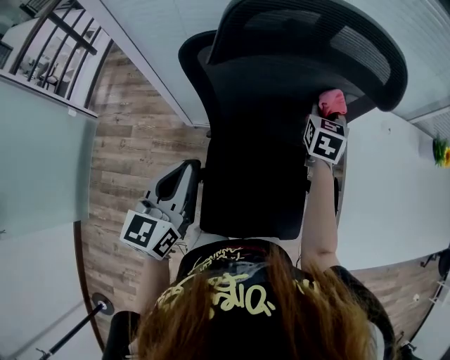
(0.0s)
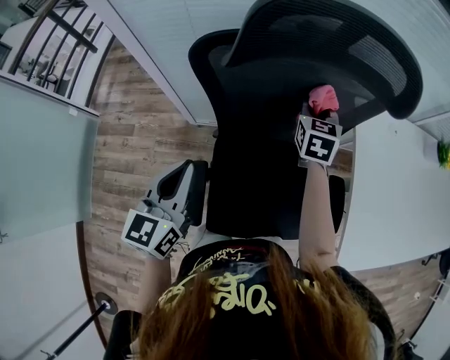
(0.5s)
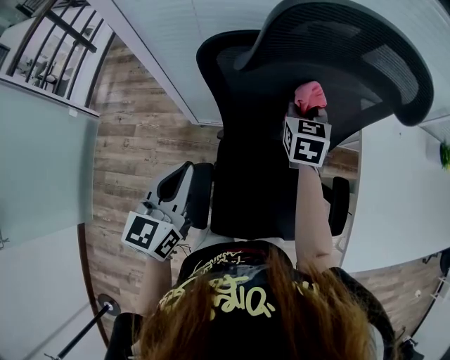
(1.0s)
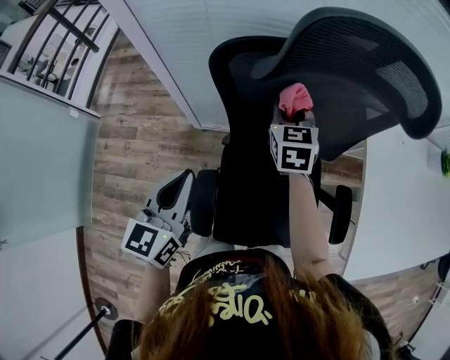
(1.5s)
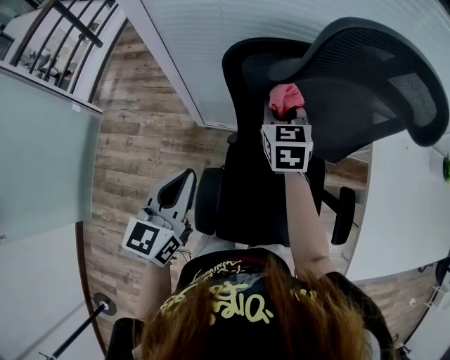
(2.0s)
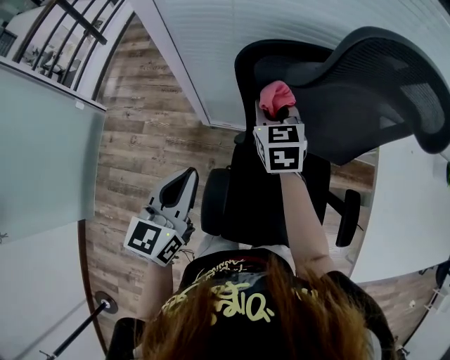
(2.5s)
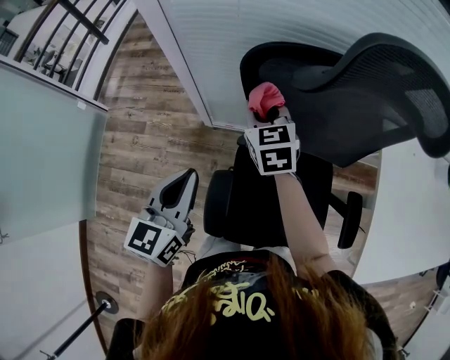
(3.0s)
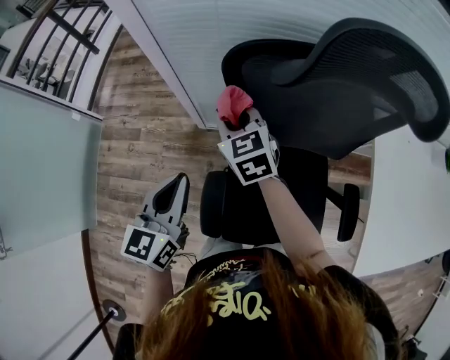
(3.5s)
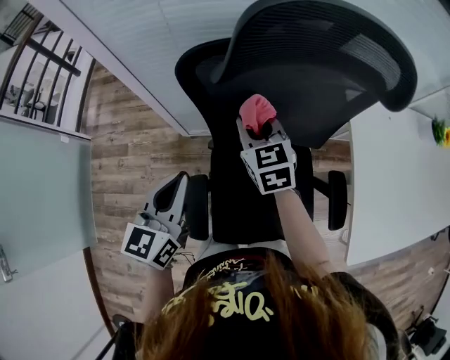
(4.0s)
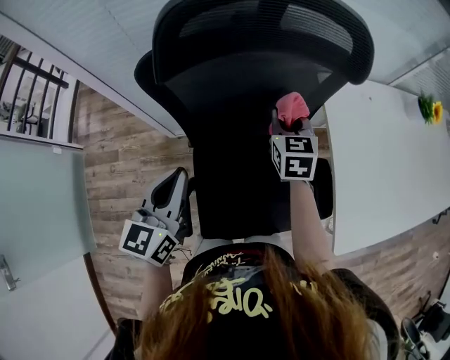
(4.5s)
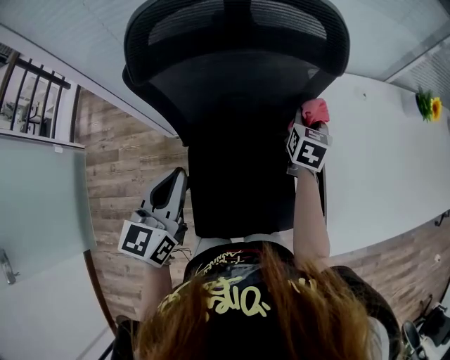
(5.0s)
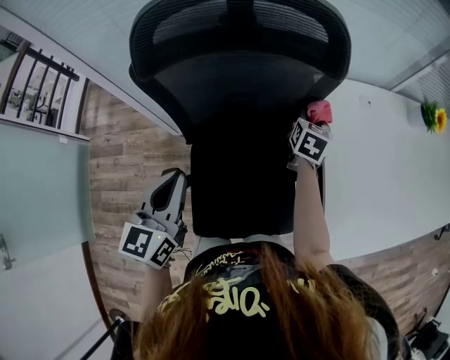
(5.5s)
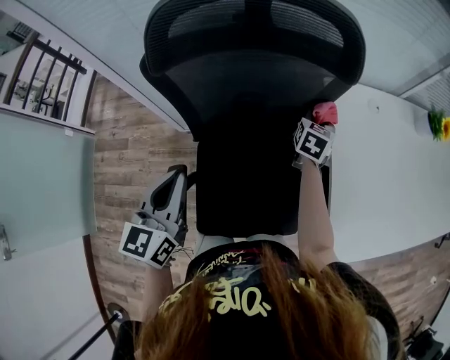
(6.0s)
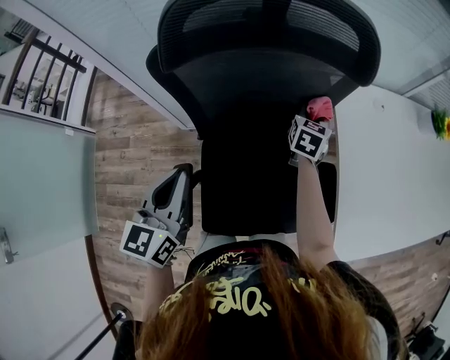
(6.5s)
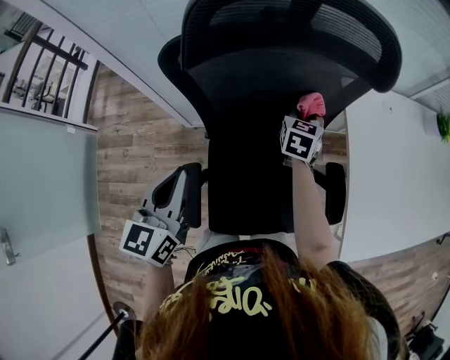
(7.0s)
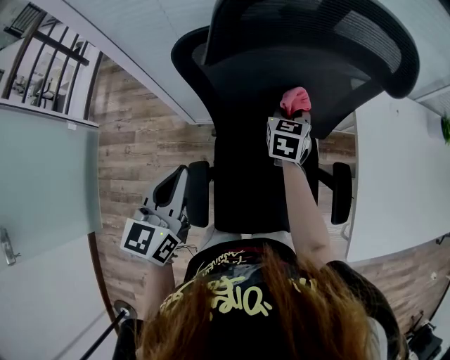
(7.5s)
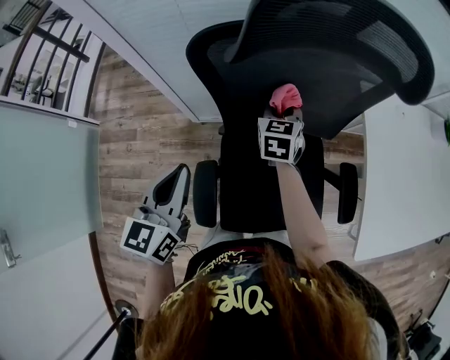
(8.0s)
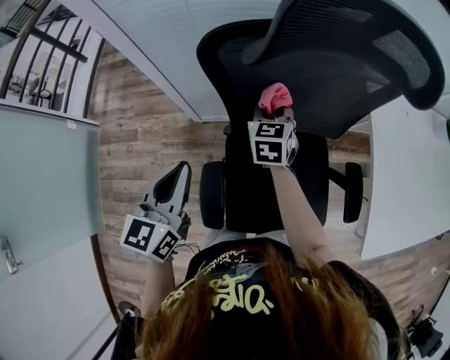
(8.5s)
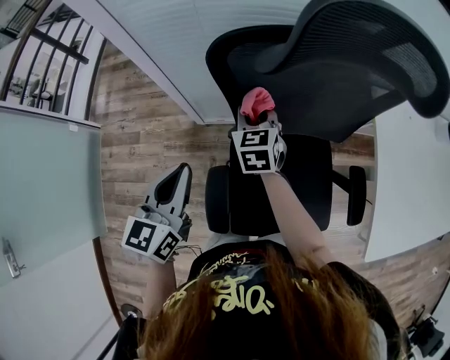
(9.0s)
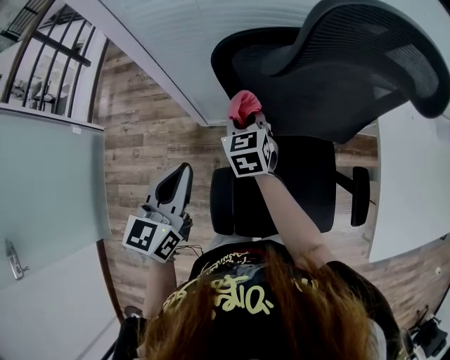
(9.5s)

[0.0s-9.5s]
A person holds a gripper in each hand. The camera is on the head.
0.0s to 2.0s: The right gripper is displaced to the left by roughly 25 cm, and turns by approximately 20 degrees; the left gripper heads to the left, covering some 10 cm.
2.0s to 4.0s: The left gripper changes place by some 5 cm. Meanwhile the right gripper is displaced backward by about 5 cm, and goes to the left and returns, approximately 15 cm each way.
4.0s to 5.5s: The left gripper heads to the right, covering approximately 10 cm, while the right gripper is displaced to the right by about 30 cm, and swivels approximately 40 degrees.
5.5s to 7.5s: The left gripper shifts about 10 cm to the left. Meanwhile the right gripper is displaced to the left by some 20 cm.
7.5s to 9.5s: The left gripper goes some 10 cm to the left, while the right gripper goes about 25 cm to the left, and turns by some 20 degrees.

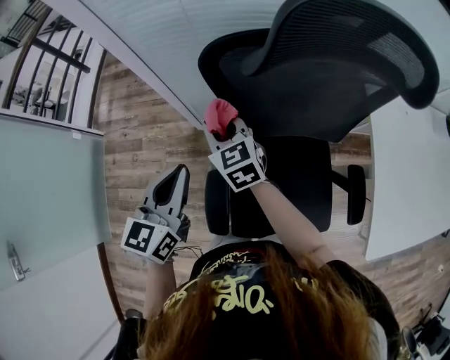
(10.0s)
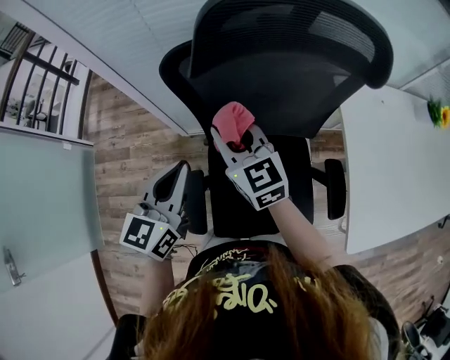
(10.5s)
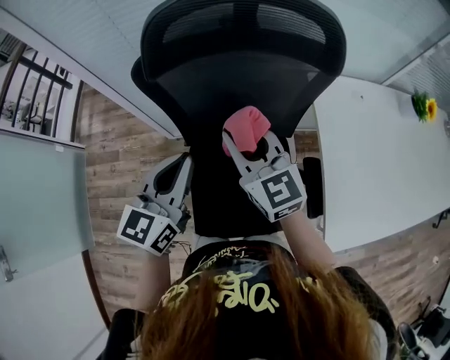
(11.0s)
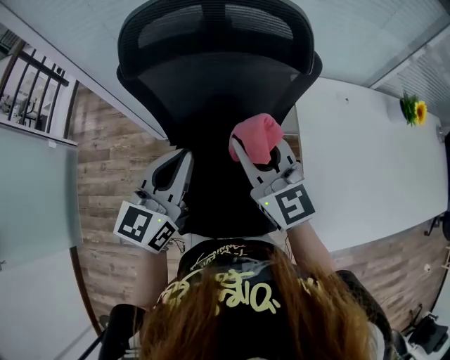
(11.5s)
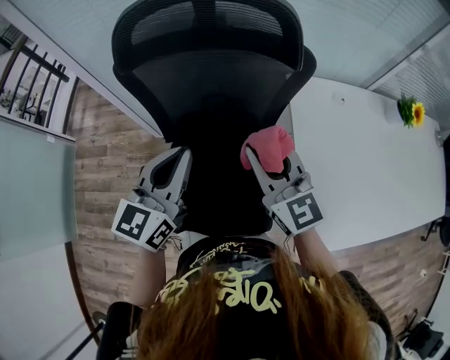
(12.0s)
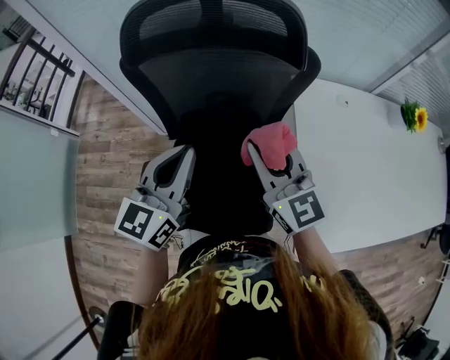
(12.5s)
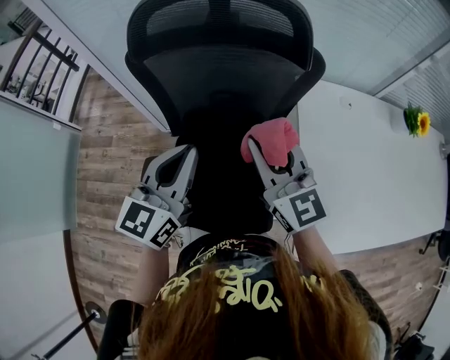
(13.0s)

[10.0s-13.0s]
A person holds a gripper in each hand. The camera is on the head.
10.0s to 11.5s: The right gripper travels to the right, upward and backward by some 35 cm, and rotates approximately 20 degrees. The left gripper moves to the right, approximately 25 cm.
11.5s to 13.0s: There are only small adjustments of the grippers.

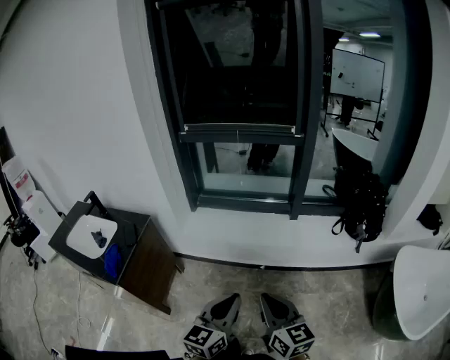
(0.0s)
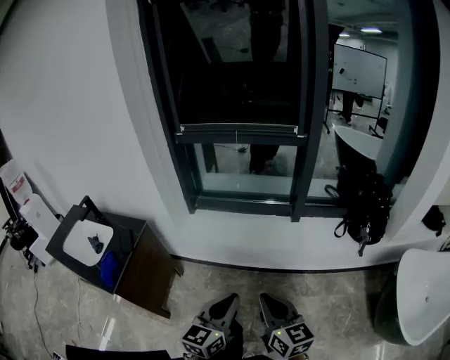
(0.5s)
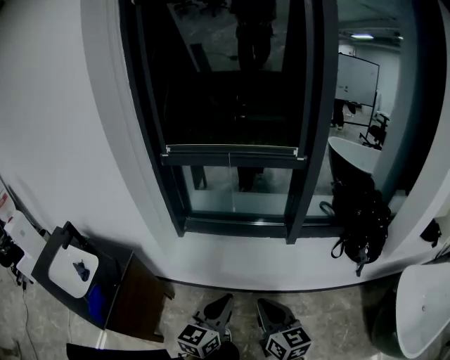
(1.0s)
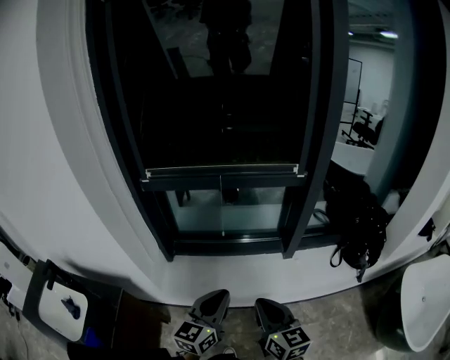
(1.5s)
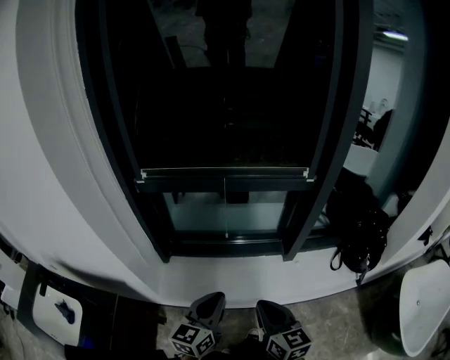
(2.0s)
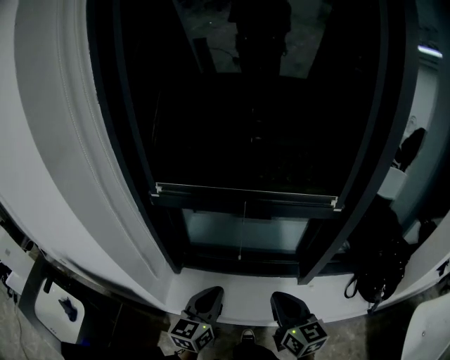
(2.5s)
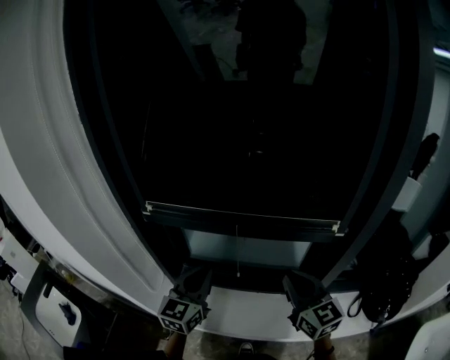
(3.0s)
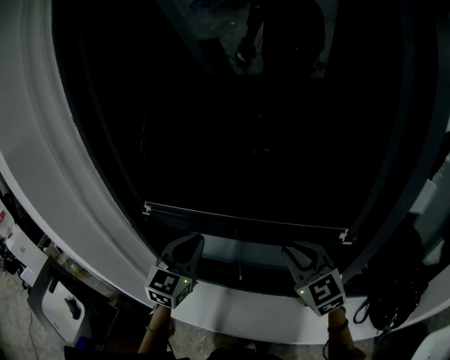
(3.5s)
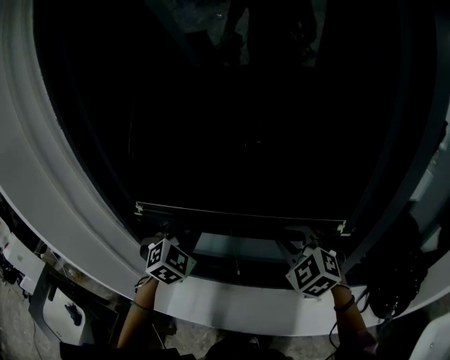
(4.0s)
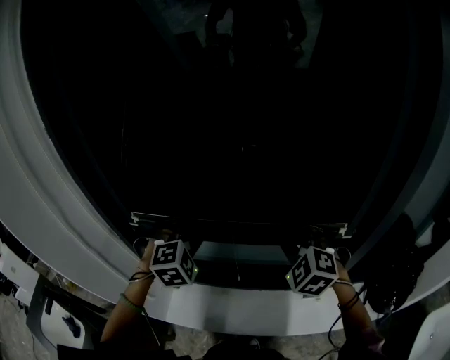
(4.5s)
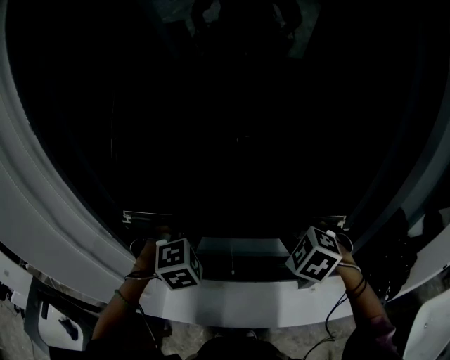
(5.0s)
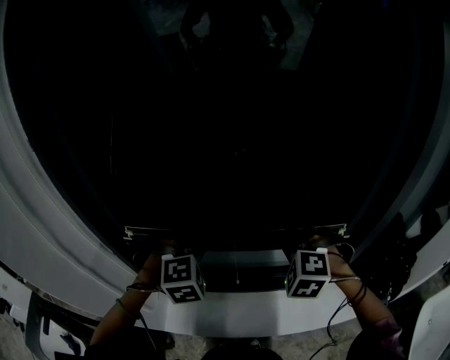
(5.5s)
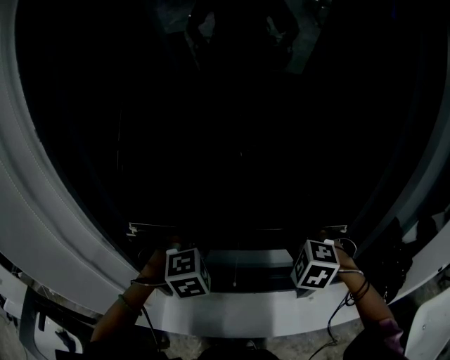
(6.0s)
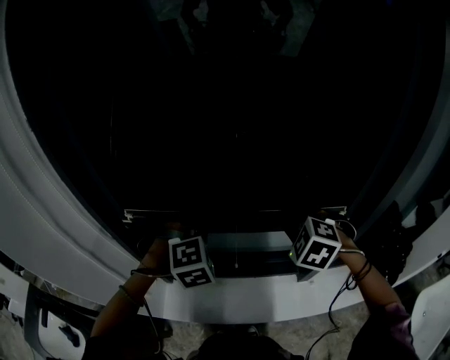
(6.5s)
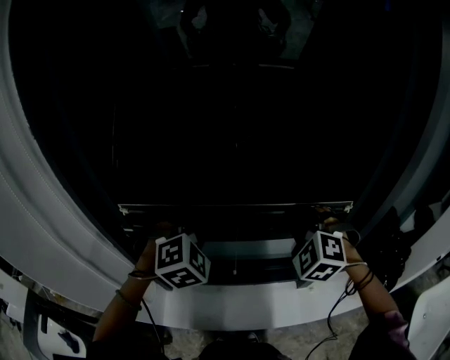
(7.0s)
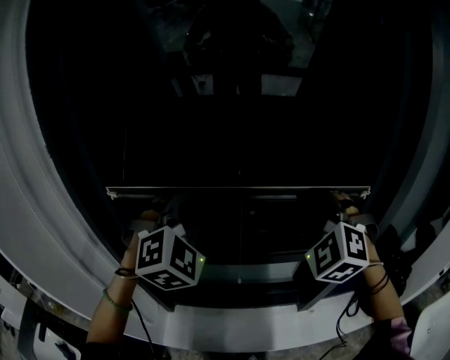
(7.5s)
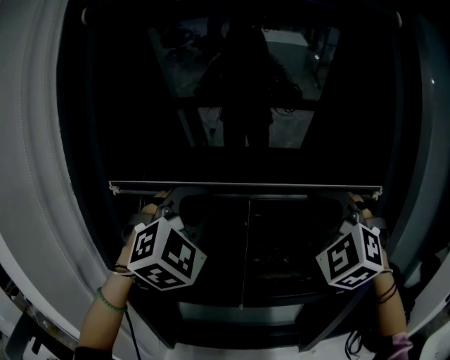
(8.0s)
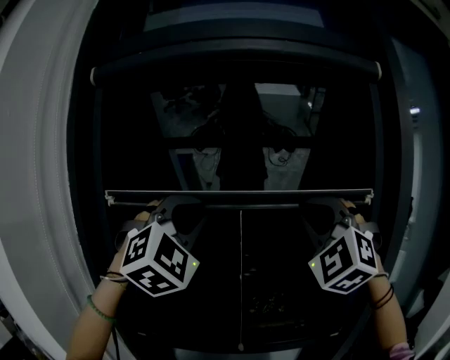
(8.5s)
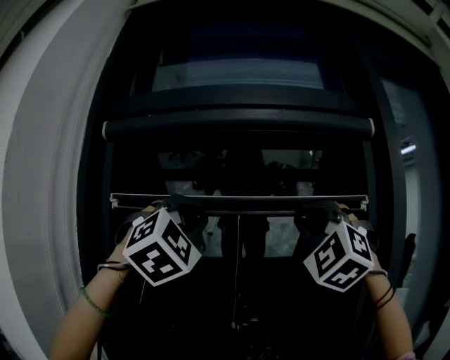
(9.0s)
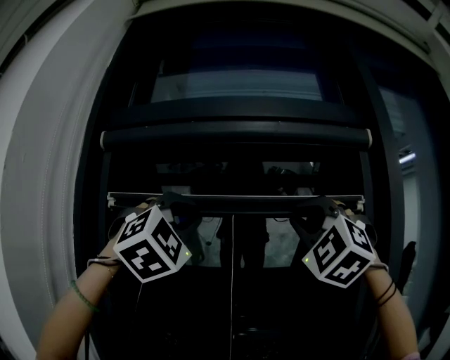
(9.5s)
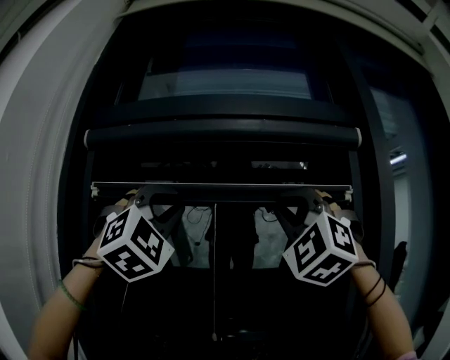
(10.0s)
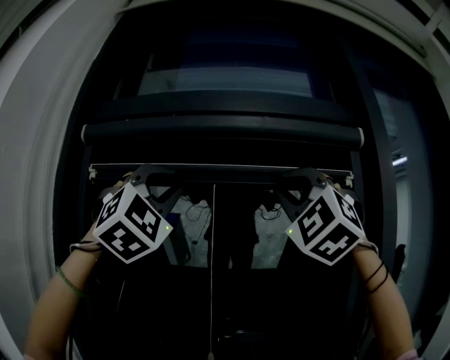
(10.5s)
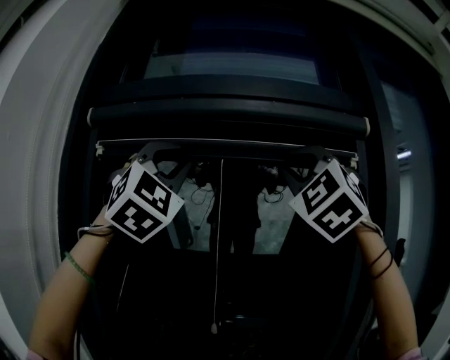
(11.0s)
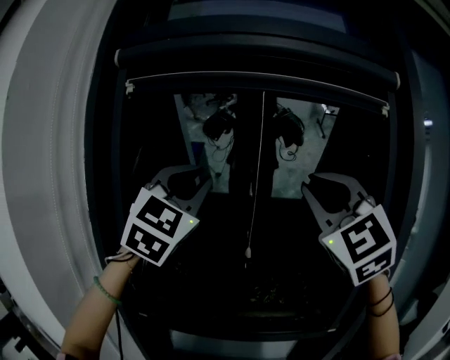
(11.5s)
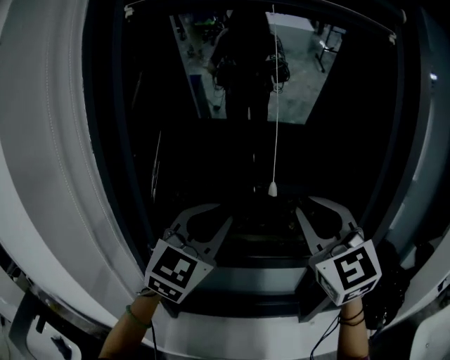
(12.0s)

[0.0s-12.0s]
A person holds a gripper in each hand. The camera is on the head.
0.0s to 2.0s: Both grippers are carried forward, approximately 50 cm.
2.0s to 4.0s: The grippers both shift forward by about 40 cm. The left gripper rotates around the line of its fingers by approximately 60 degrees, clockwise from behind, while the right gripper twists about 60 degrees counterclockwise, seen from behind.
4.0s to 6.0s: The right gripper rotates approximately 30 degrees, while the left gripper swivels roughly 30 degrees.
6.0s to 8.0s: The two grippers go some 35 cm upward. The right gripper angles its fingers upward, by about 40 degrees. The left gripper angles its fingers upward, by roughly 40 degrees.
8.0s to 10.0s: The grippers both shift upward by approximately 30 cm. The right gripper turns by about 30 degrees. Meanwhile the left gripper changes its angle by some 30 degrees.
10.0s to 12.0s: The grippers both shift downward by roughly 35 cm. The left gripper twists roughly 50 degrees counterclockwise, seen from behind, while the right gripper rolls clockwise, seen from behind, by about 50 degrees.

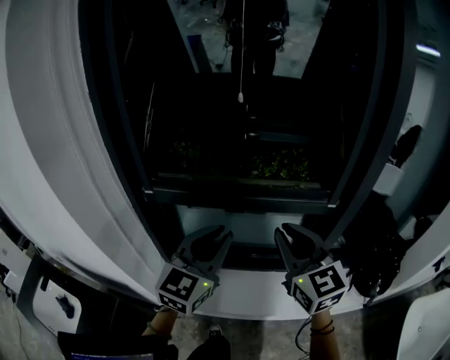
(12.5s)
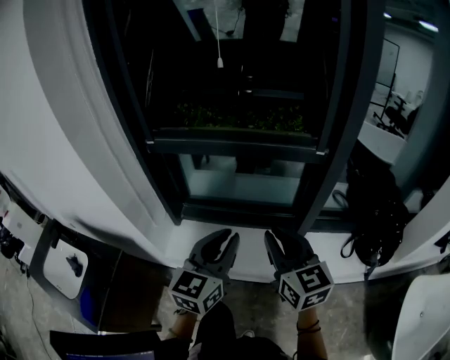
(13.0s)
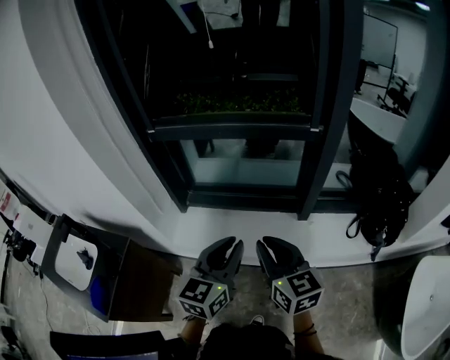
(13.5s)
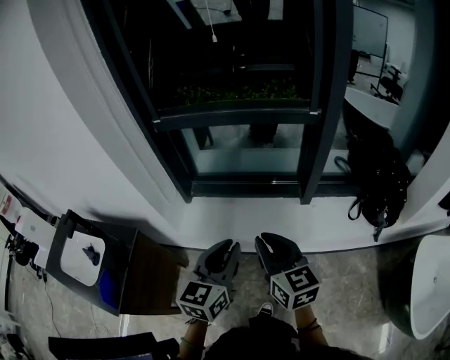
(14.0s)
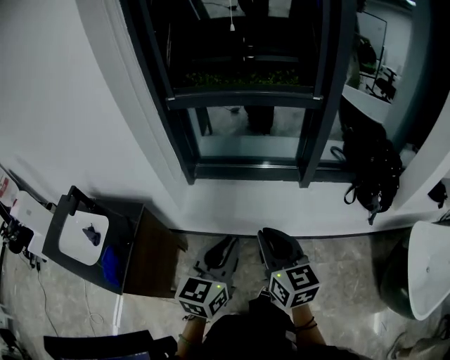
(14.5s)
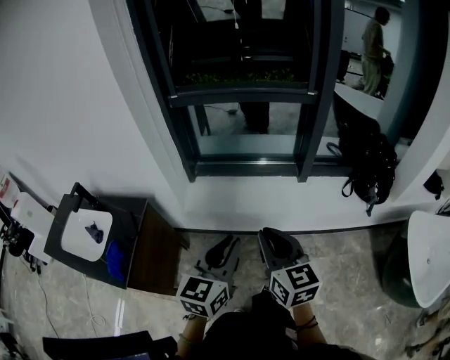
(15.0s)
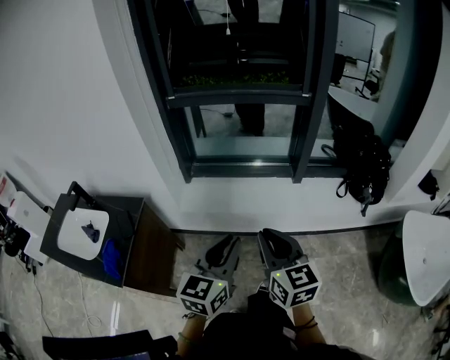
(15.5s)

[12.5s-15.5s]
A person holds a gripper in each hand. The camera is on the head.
12.5s to 14.0s: The two grippers go about 35 cm backward and downward. The left gripper rotates roughly 20 degrees; the right gripper turns by about 20 degrees.
14.0s to 15.5s: Both grippers move backward, about 20 cm.
